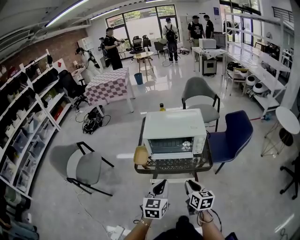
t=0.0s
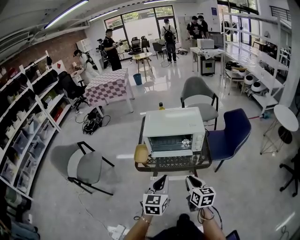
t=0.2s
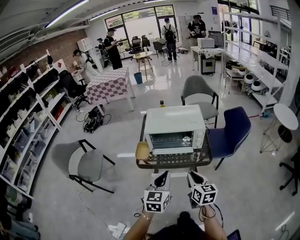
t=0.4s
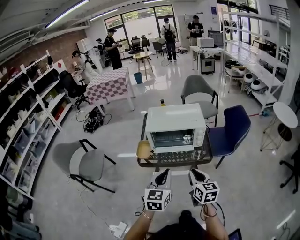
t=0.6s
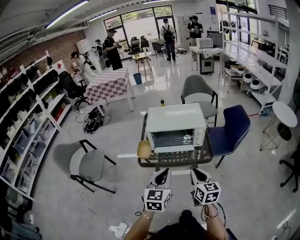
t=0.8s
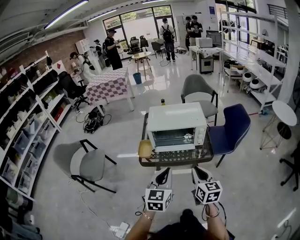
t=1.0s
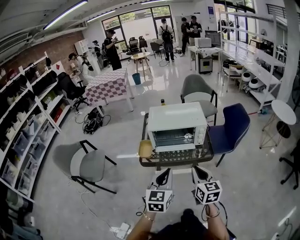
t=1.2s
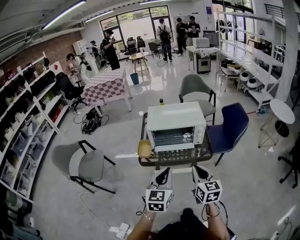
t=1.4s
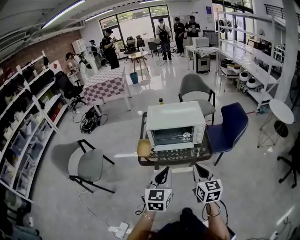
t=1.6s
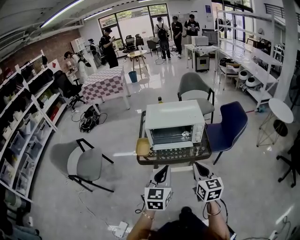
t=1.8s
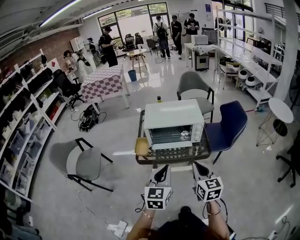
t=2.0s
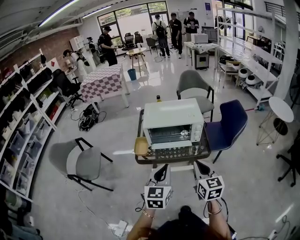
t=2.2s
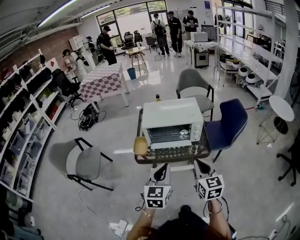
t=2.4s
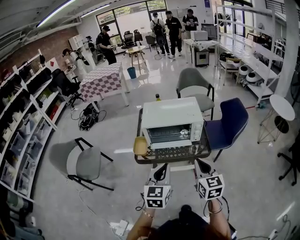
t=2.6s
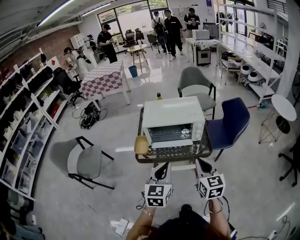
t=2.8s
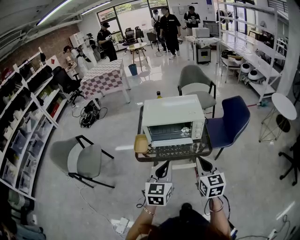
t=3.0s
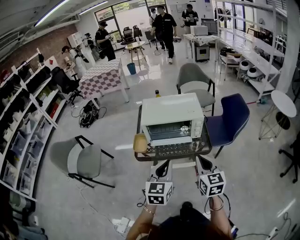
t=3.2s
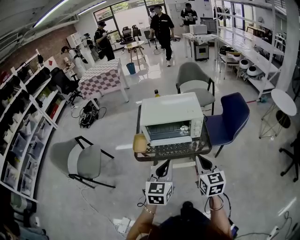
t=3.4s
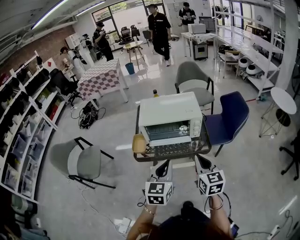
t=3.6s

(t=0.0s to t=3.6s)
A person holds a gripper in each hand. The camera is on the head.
t=0.0s - t=1.8s: The right gripper travels upward and backward by about 15 cm. The left gripper travels upward by roughly 10 cm.
t=1.8s - t=3.6s: The right gripper shifts by roughly 5 cm; the left gripper ends up roughly 5 cm from where it was.

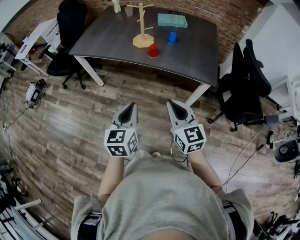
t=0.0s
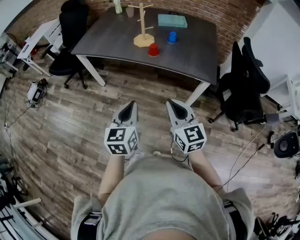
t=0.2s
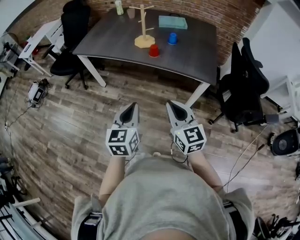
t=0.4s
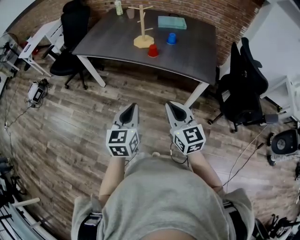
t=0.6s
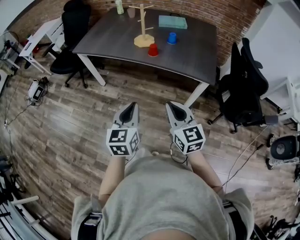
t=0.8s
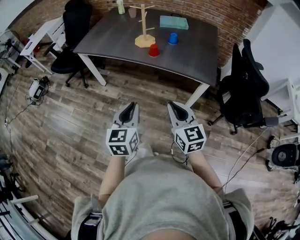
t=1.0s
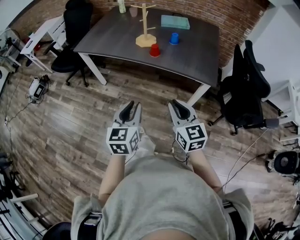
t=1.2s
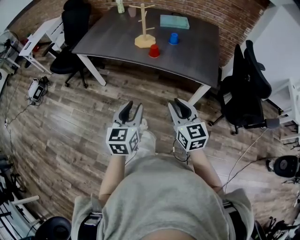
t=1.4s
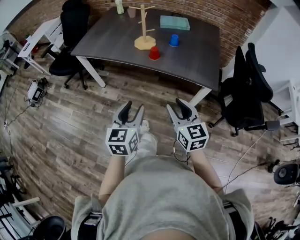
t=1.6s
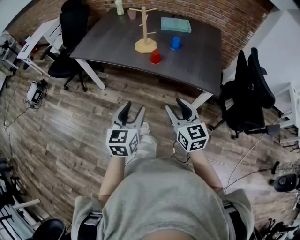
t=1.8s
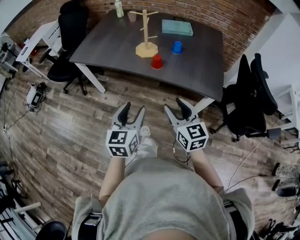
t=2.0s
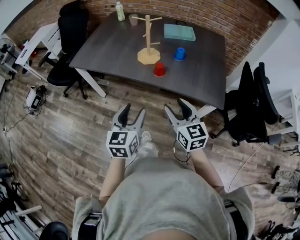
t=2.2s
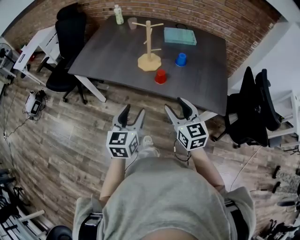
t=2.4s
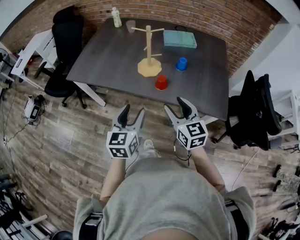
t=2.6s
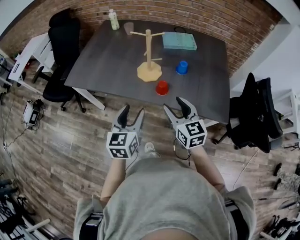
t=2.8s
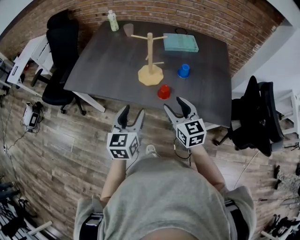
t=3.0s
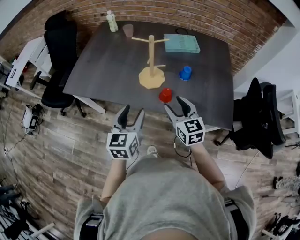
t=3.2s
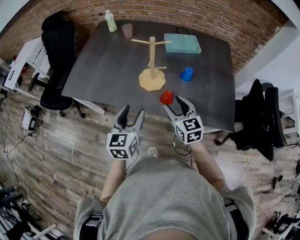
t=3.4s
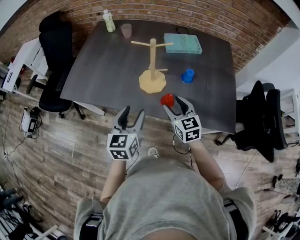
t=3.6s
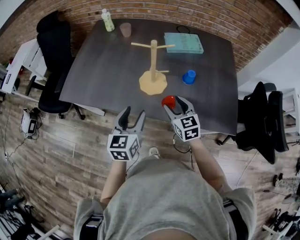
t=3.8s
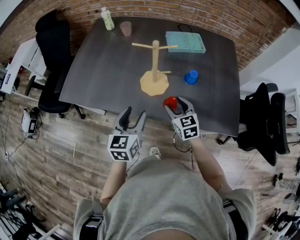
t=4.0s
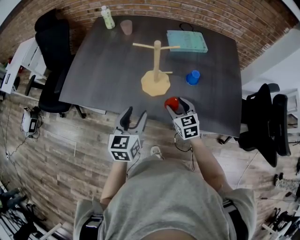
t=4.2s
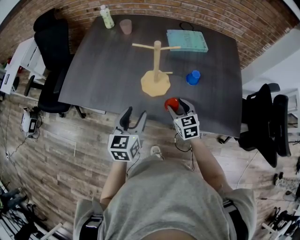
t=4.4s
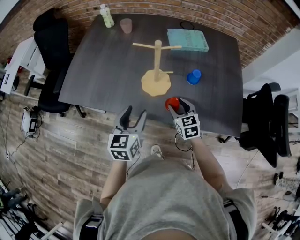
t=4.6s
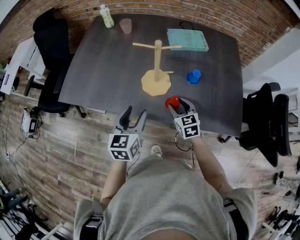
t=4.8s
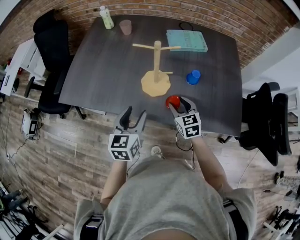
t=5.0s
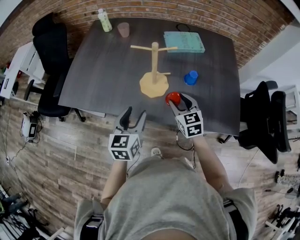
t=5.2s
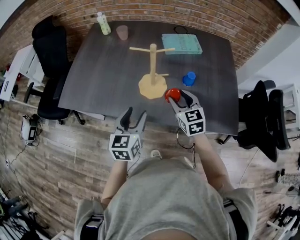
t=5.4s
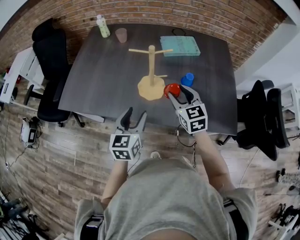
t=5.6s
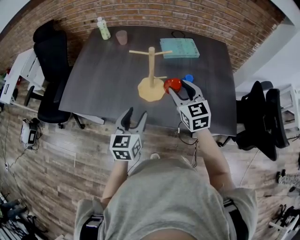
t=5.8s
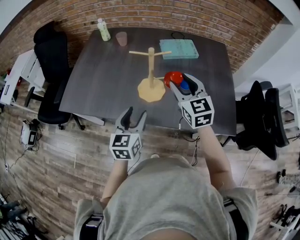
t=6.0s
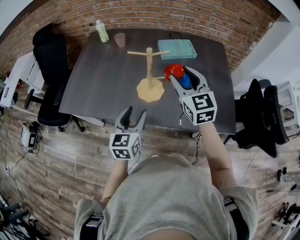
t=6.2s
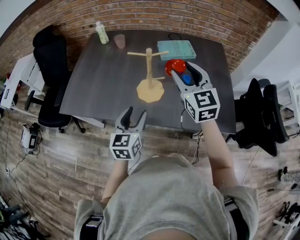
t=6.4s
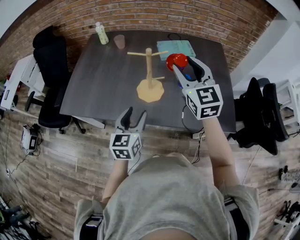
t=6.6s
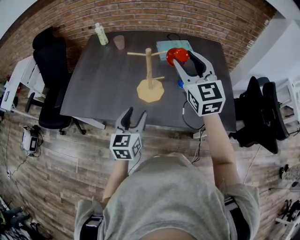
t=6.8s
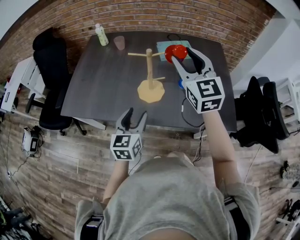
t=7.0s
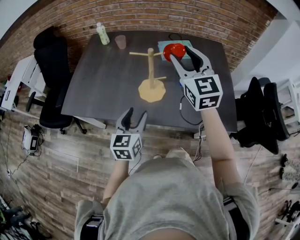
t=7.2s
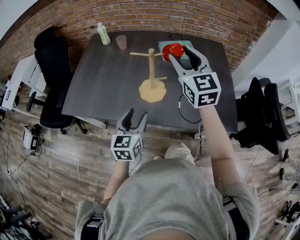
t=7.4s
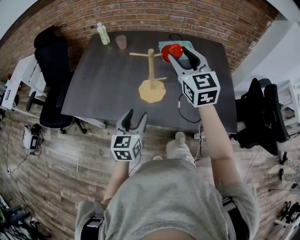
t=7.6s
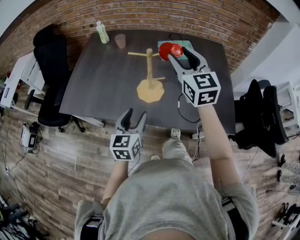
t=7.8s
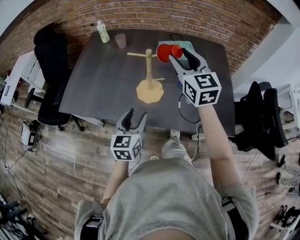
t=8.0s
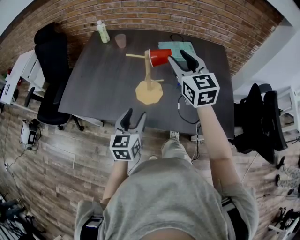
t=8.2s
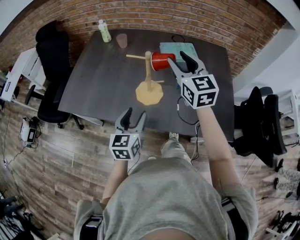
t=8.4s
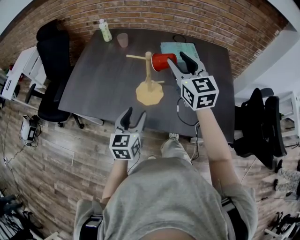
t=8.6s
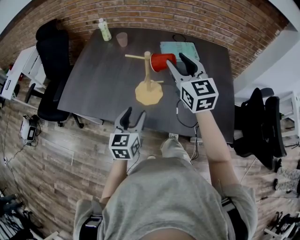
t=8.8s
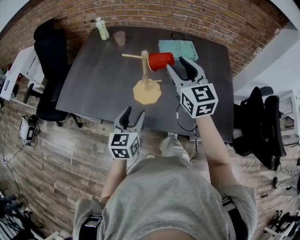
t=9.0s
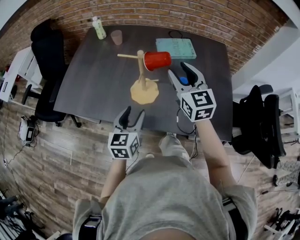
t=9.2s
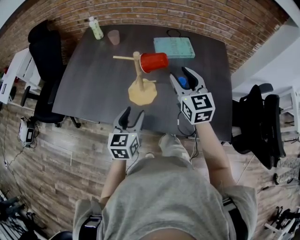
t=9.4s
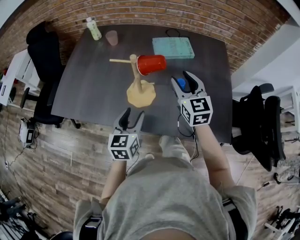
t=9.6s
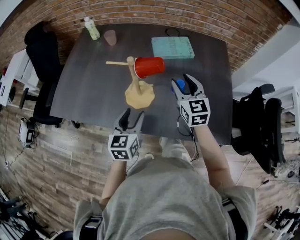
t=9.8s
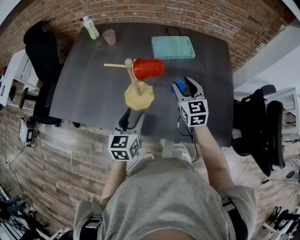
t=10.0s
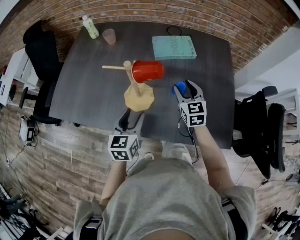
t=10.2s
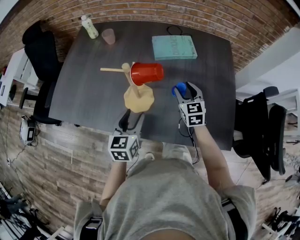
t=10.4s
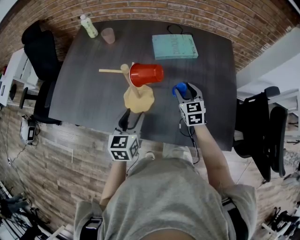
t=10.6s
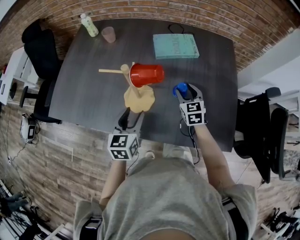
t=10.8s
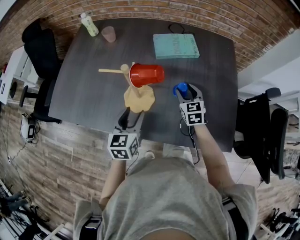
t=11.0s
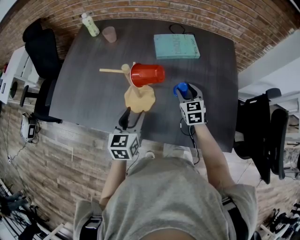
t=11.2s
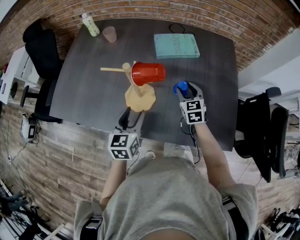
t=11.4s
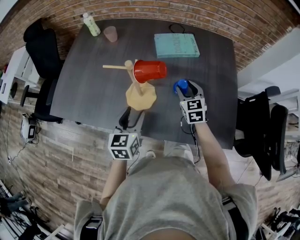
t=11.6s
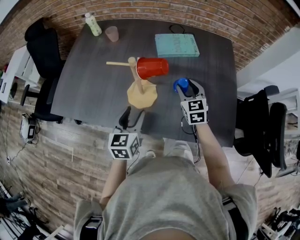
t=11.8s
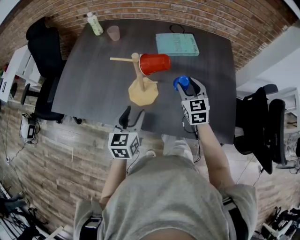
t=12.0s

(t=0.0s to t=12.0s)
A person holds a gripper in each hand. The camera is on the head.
t=0.0s - t=1.6s: The right gripper opens its fingers; the left gripper opens up.
t=1.6s - t=3.0s: The two grippers go some 30 cm forward. The right gripper opens its fingers.
t=3.0s - t=4.4s: The left gripper is displaced forward and downward by about 15 cm, while the right gripper heads downward and forward, covering roughly 20 cm.
t=4.4s - t=6.0s: The right gripper heads upward, covering approximately 20 cm, and rotates some 20 degrees.
t=6.0s - t=7.6s: The right gripper travels upward by some 10 cm.
t=7.6s - t=9.0s: The right gripper ends up about 5 cm from where it was.
t=9.0s - t=10.4s: The left gripper travels forward by some 5 cm; the right gripper travels downward and to the right by some 25 cm, and rotates roughly 20 degrees.
t=10.4s - t=12.0s: The right gripper ends up roughly 5 cm from where it was.

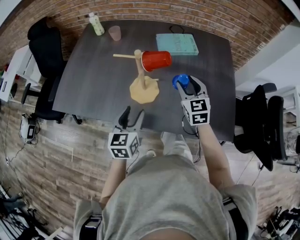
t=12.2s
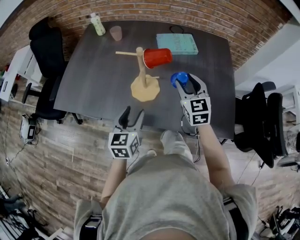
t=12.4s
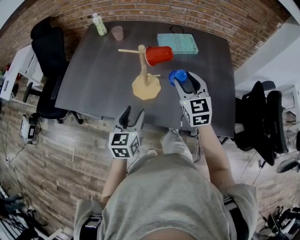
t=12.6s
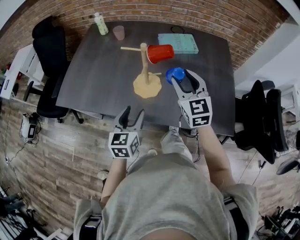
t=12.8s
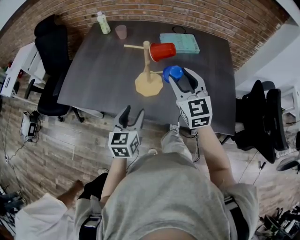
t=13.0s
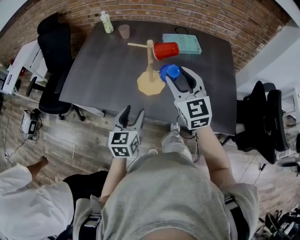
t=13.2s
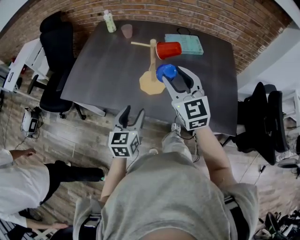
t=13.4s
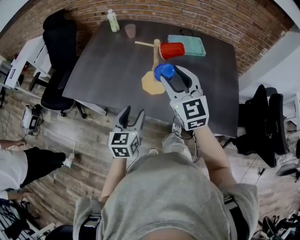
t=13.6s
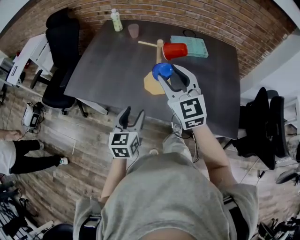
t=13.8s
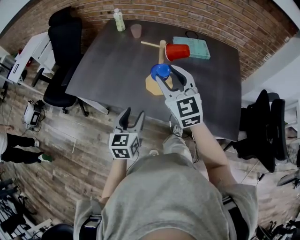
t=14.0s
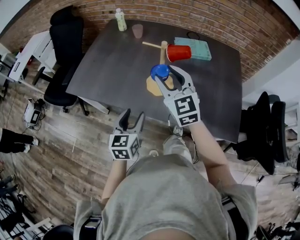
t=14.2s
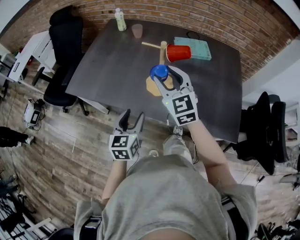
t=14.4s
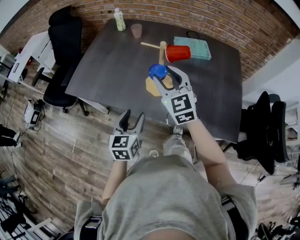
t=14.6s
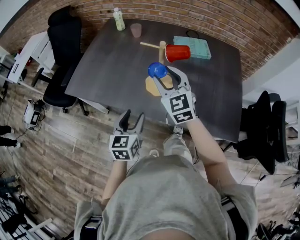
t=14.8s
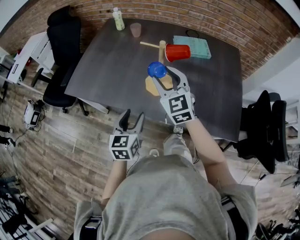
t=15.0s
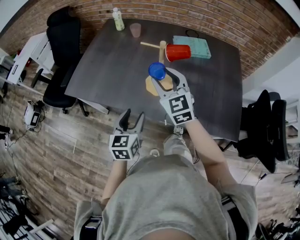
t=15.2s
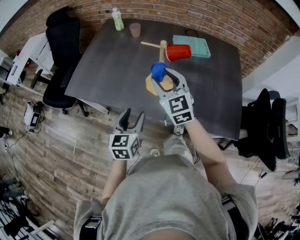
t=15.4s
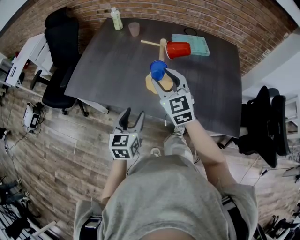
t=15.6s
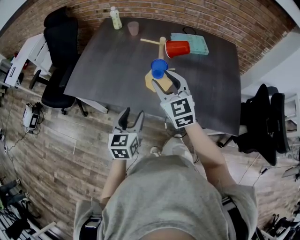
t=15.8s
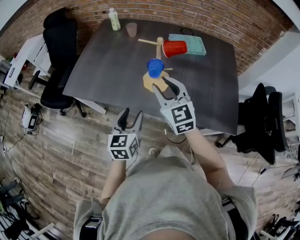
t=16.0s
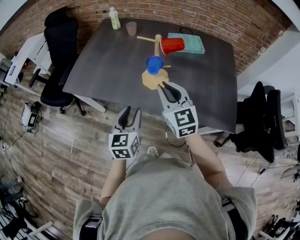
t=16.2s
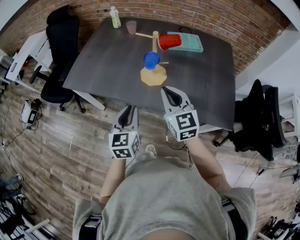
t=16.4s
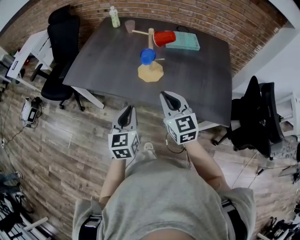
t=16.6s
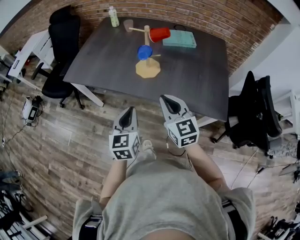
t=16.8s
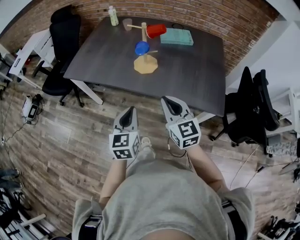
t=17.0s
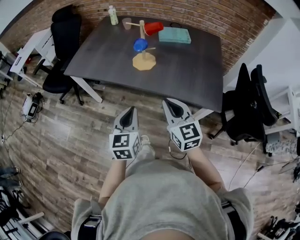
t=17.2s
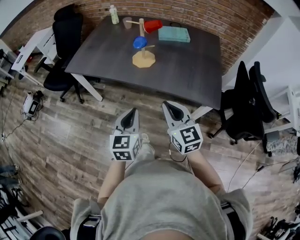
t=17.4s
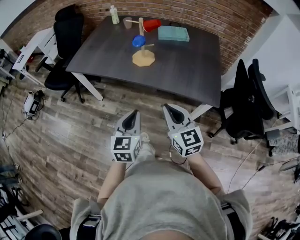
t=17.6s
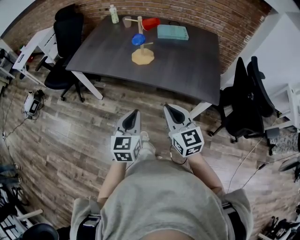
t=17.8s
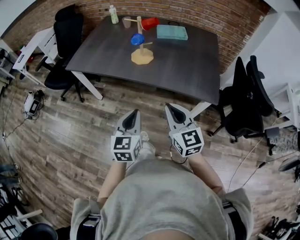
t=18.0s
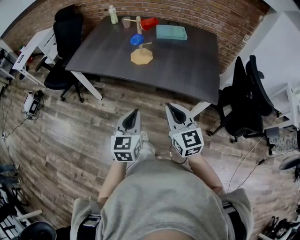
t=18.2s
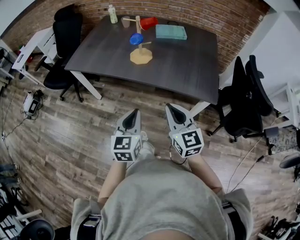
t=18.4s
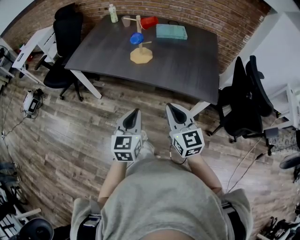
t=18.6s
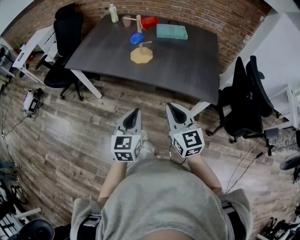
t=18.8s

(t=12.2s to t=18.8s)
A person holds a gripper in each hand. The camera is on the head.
t=12.2s - t=13.8s: The left gripper is displaced backward and to the left by some 10 cm. Meanwhile the right gripper is displaced to the left, upward and backward by approximately 25 cm, and swivels about 20 degrees.
t=13.8s - t=15.4s: The right gripper moves downward, some 5 cm.
t=15.4s - t=17.2s: Both grippers travel together backward, approximately 25 cm. The left gripper closes its fingers. The right gripper closes its fingers.
t=17.2s - t=18.8s: Both grippers move backward, approximately 10 cm.

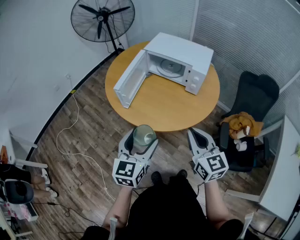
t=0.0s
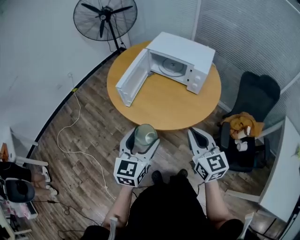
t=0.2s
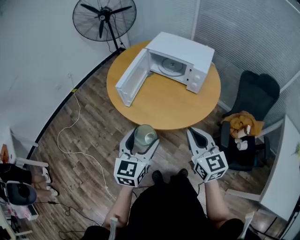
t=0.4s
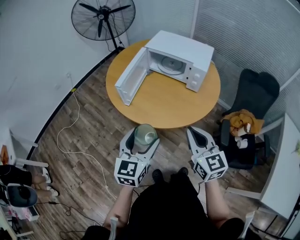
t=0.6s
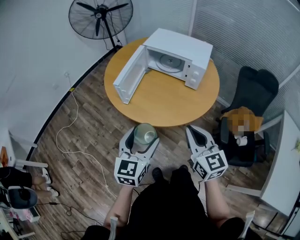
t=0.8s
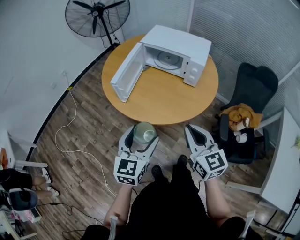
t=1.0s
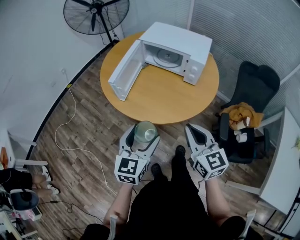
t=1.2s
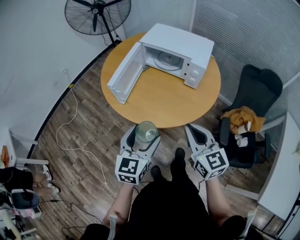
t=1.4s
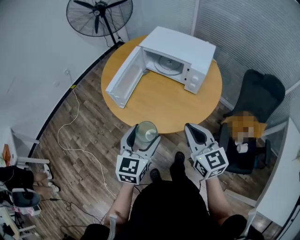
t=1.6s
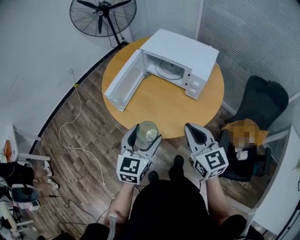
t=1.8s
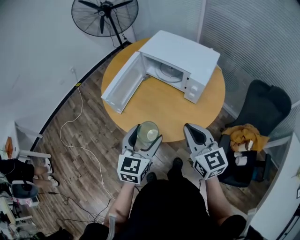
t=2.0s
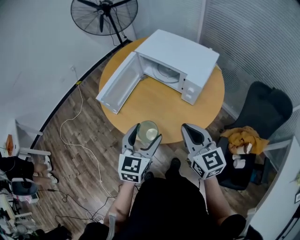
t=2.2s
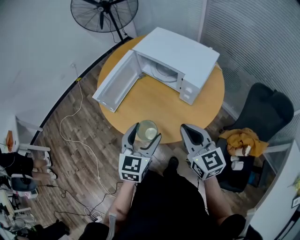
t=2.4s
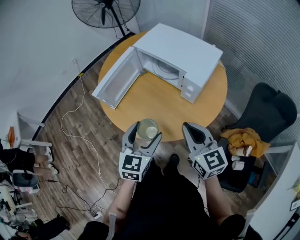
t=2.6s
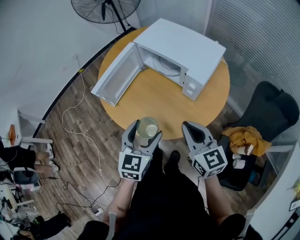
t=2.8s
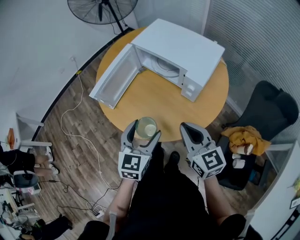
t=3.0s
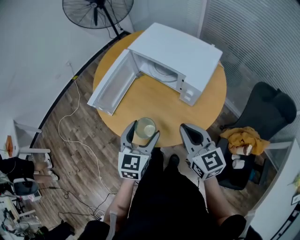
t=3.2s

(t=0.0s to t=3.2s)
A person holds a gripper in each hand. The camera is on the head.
t=0.0s - t=1.6s: Both grippers move forward, approximately 5 cm.
t=1.6s - t=3.2s: The grippers both shift forward and to the right by roughly 15 cm.
